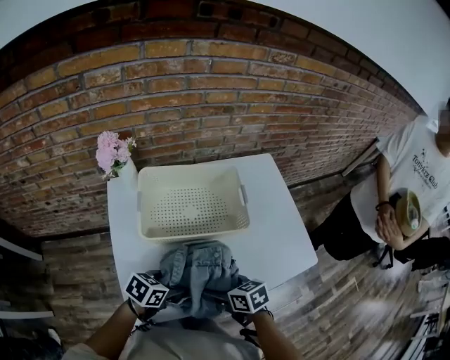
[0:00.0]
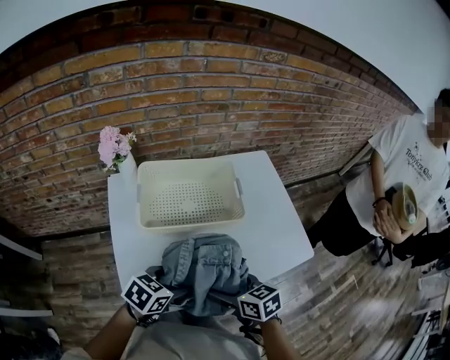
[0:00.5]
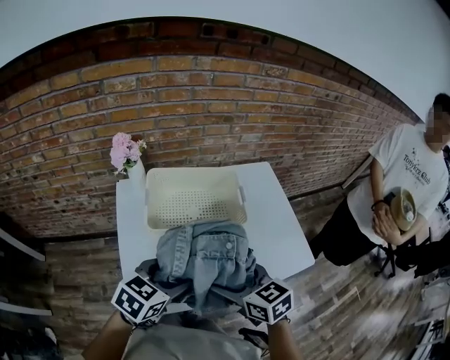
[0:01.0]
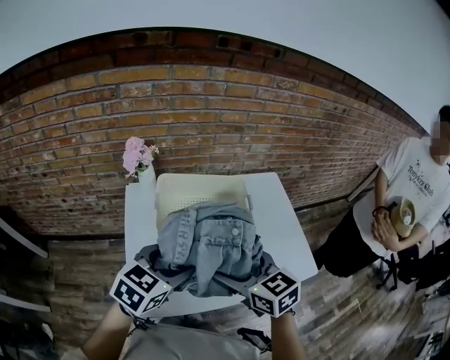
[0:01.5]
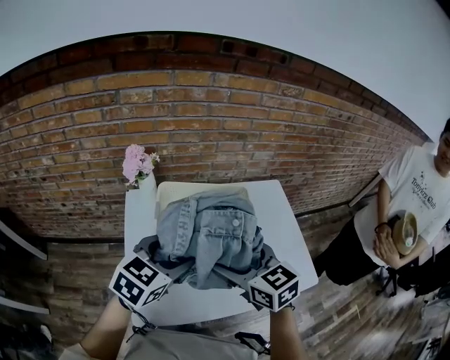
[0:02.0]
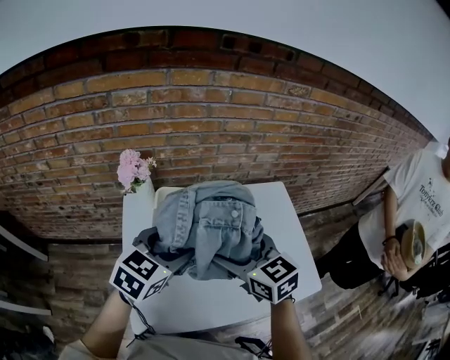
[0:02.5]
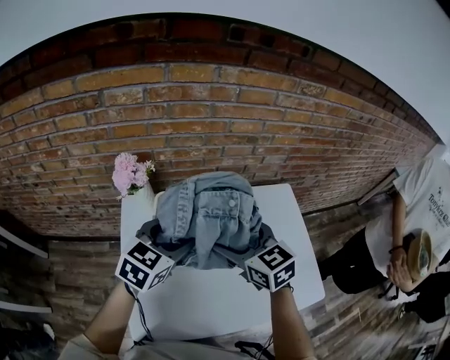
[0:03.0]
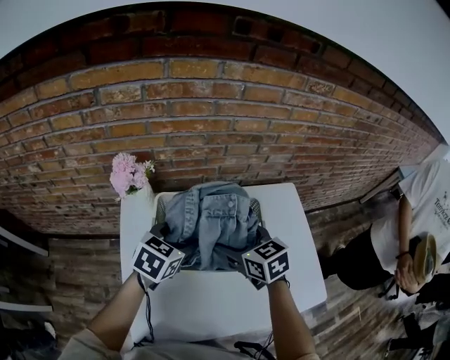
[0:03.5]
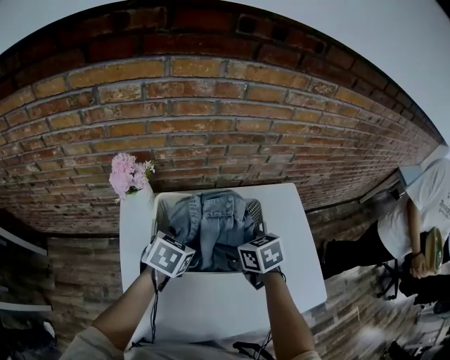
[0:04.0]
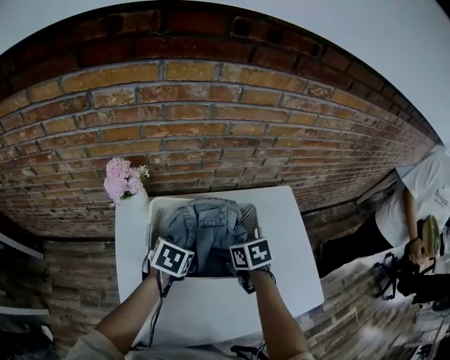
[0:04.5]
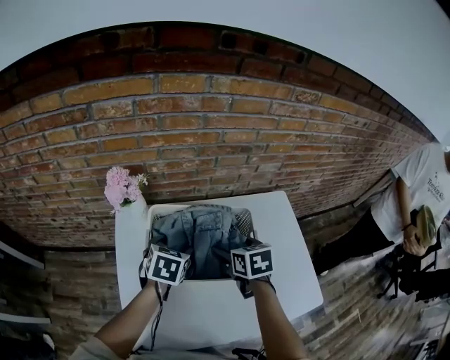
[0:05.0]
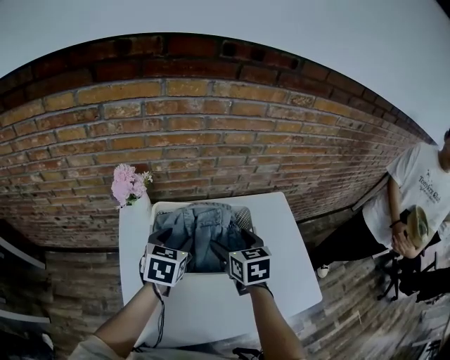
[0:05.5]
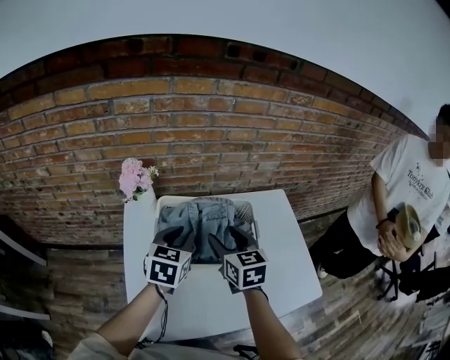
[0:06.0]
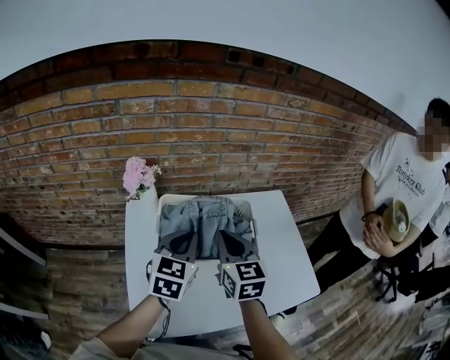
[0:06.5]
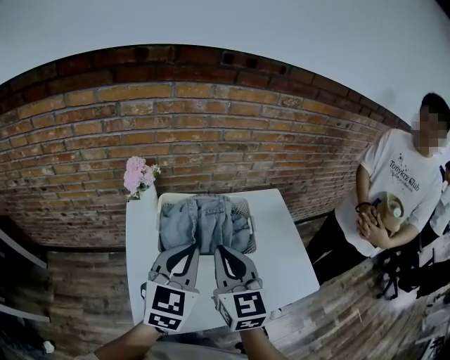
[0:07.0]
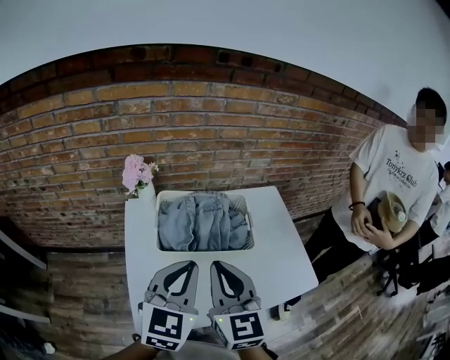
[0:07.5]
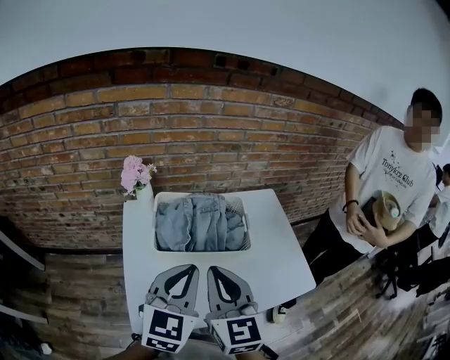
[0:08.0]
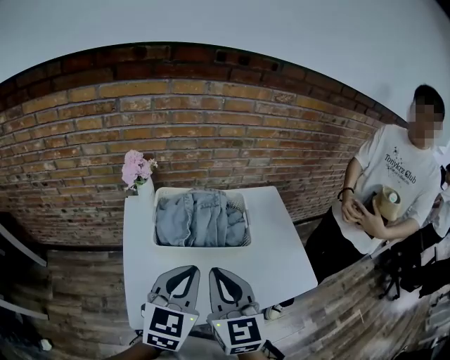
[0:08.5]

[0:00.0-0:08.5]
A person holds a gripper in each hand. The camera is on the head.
0:00.0 to 0:02.0: Both grippers travel together upward, some 25 cm. The right gripper turns by approximately 40 degrees. Meanwhile the left gripper changes its angle by some 40 degrees.
0:02.0 to 0:04.0: Both grippers move forward and downward, about 20 cm. The left gripper changes its angle by about 20 degrees. Meanwhile the right gripper turns by about 20 degrees.
0:04.0 to 0:06.5: Both grippers travel together upward and backward, approximately 15 cm. The left gripper turns by roughly 30 degrees, and closes its fingers. Meanwhile the right gripper rotates some 40 degrees, and closes.
0:06.5 to 0:08.5: The two grippers go roughly 15 cm backward.

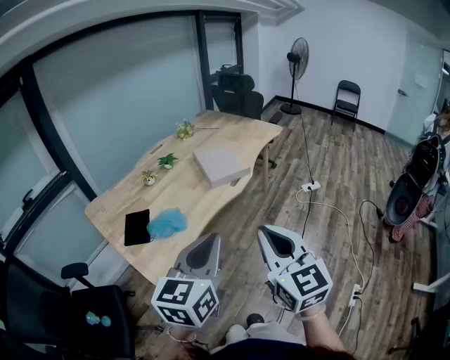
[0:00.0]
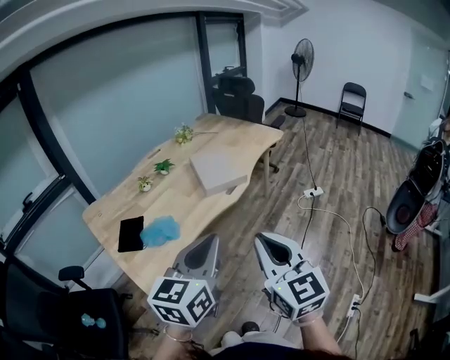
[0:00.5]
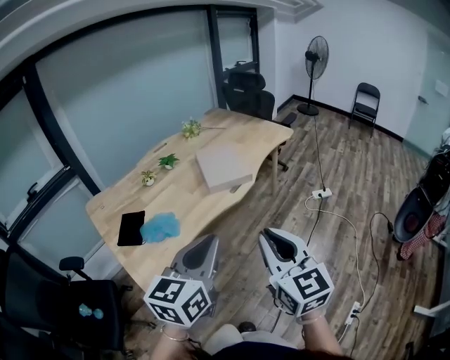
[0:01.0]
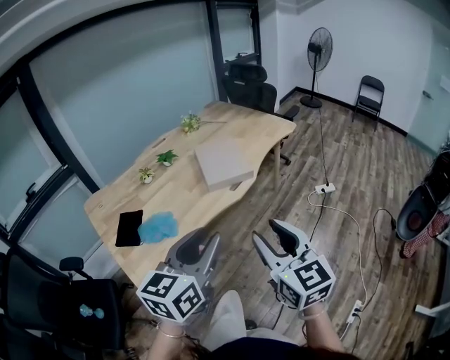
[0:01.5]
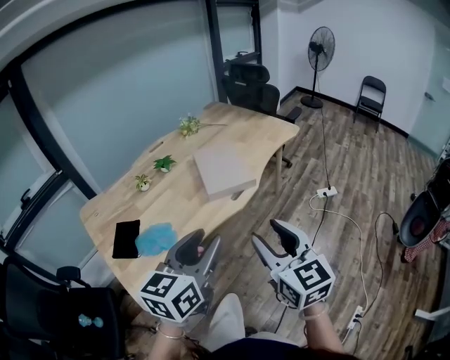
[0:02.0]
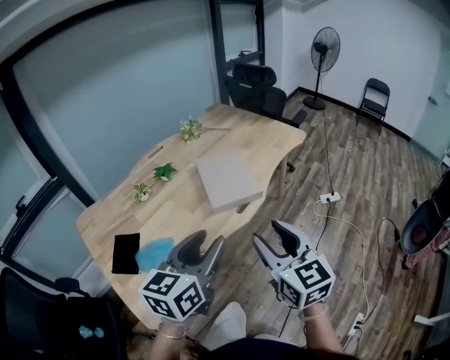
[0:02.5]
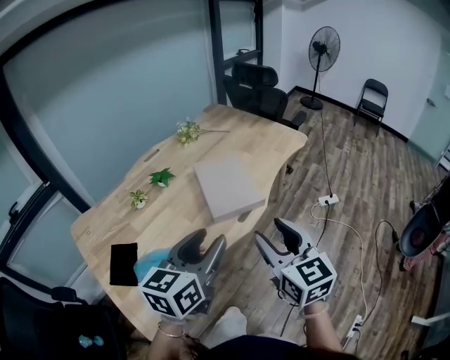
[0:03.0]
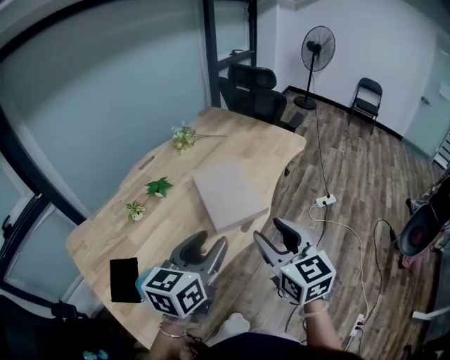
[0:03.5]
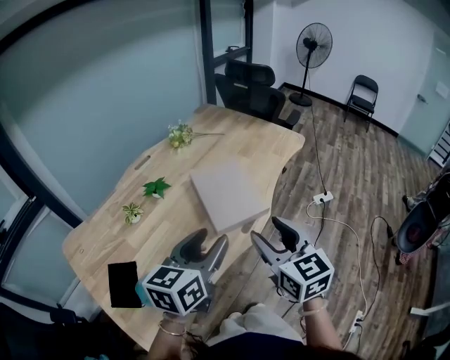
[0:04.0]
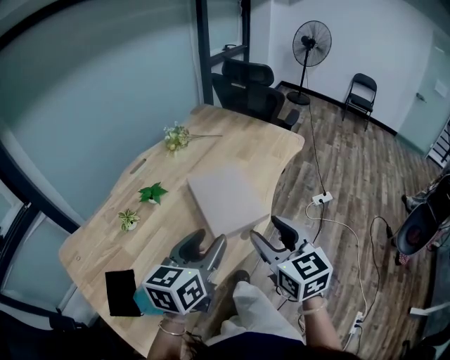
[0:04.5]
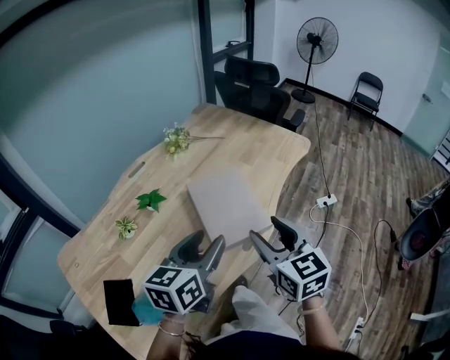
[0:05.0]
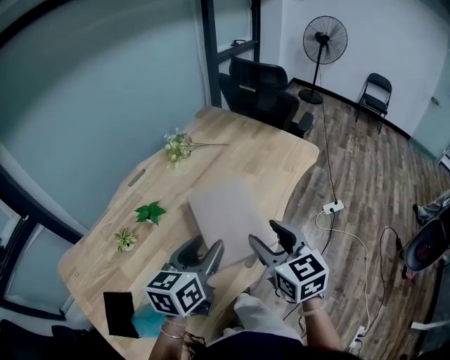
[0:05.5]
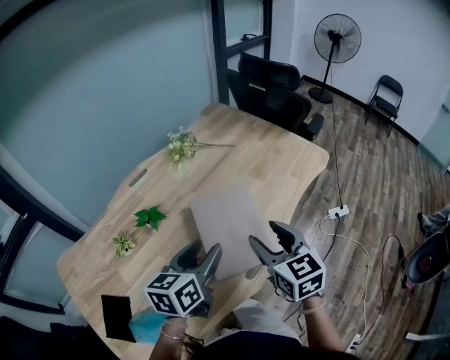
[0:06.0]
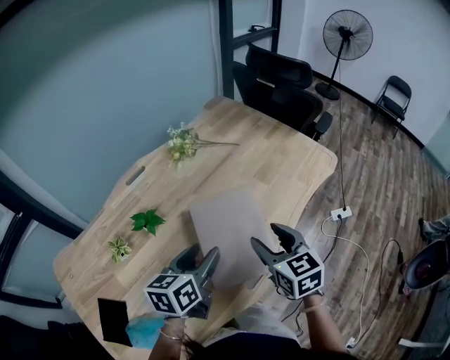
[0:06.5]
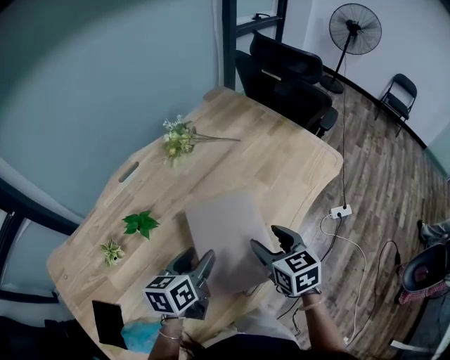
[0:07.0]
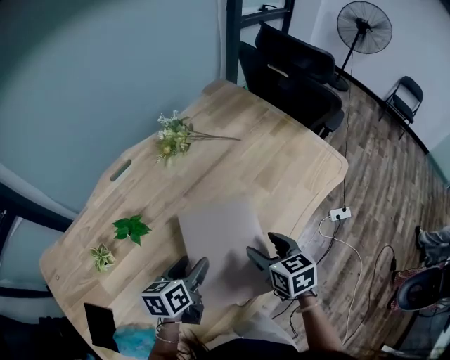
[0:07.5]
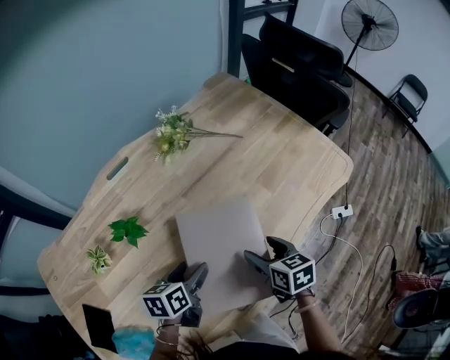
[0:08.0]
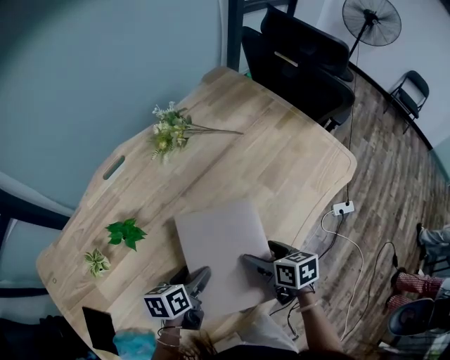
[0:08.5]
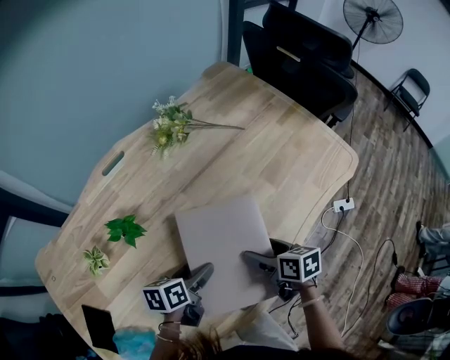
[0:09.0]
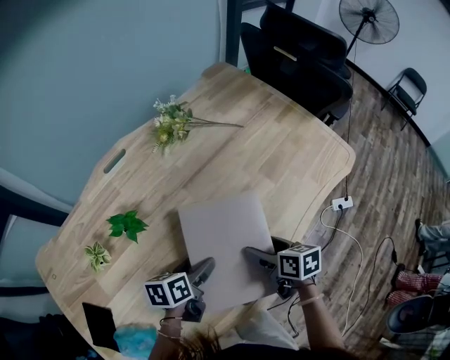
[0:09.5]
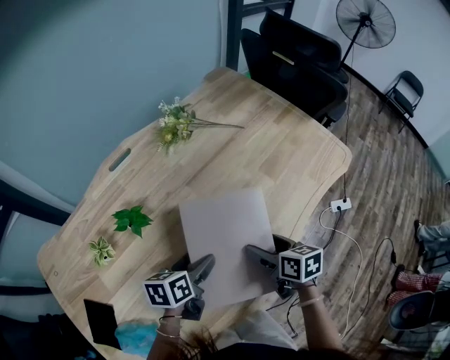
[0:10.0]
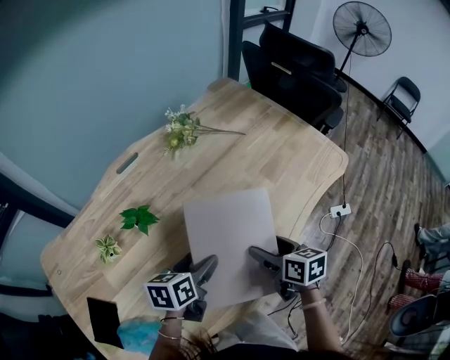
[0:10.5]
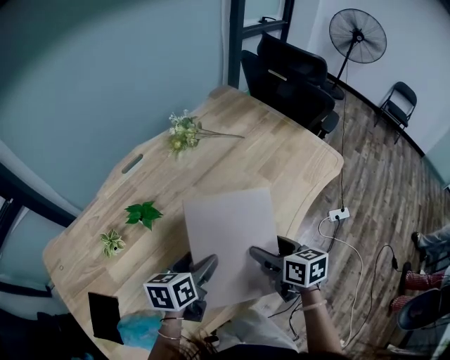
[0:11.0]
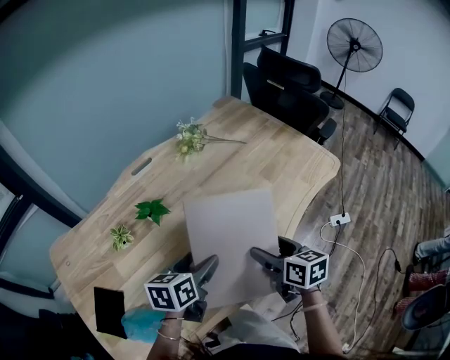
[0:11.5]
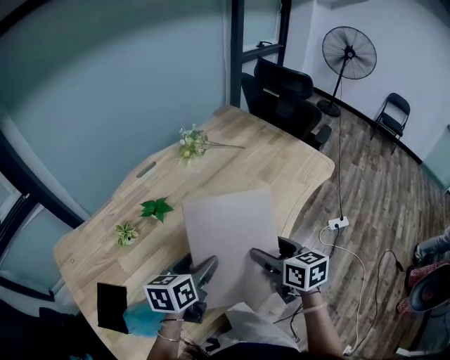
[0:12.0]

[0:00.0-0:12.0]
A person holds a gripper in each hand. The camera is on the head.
0:00.0 to 0:02.0: The right gripper is displaced forward and to the right by about 20 cm, and opens up; the left gripper heads forward, covering roughly 15 cm, and opens.
0:02.0 to 0:04.0: Both grippers travel together forward, approximately 20 cm.
0:04.0 to 0:06.0: The right gripper shifts about 20 cm forward. Meanwhile the left gripper goes some 20 cm forward and downward.
0:06.0 to 0:08.0: Both grippers travel together downward and forward, some 20 cm. The right gripper swivels some 30 degrees. Meanwhile the left gripper swivels some 30 degrees.
0:08.0 to 0:10.0: The grippers move only a little.
0:10.0 to 0:12.0: The grippers both shift upward and backward by some 15 cm.

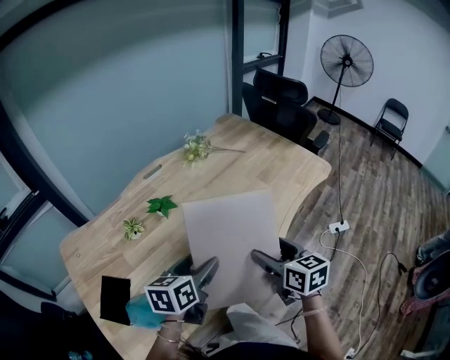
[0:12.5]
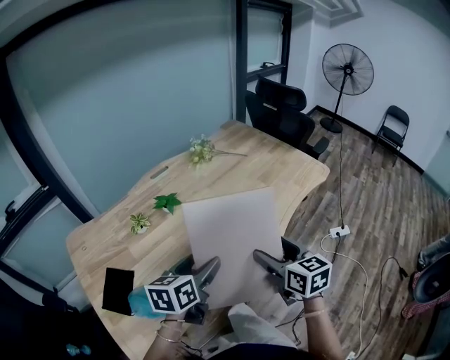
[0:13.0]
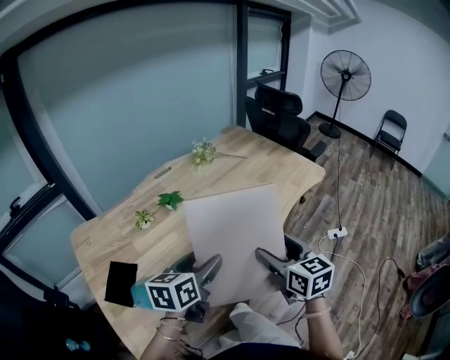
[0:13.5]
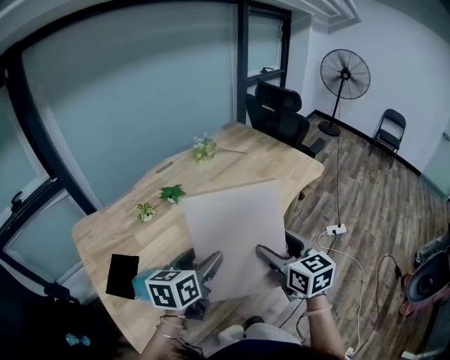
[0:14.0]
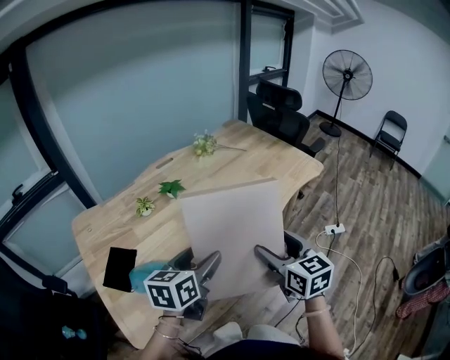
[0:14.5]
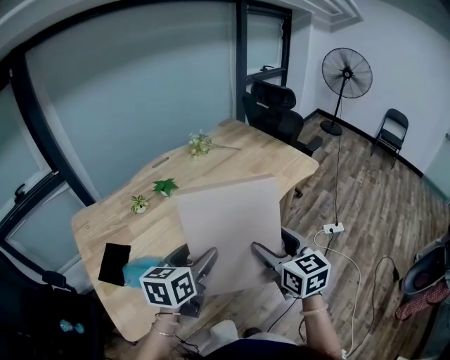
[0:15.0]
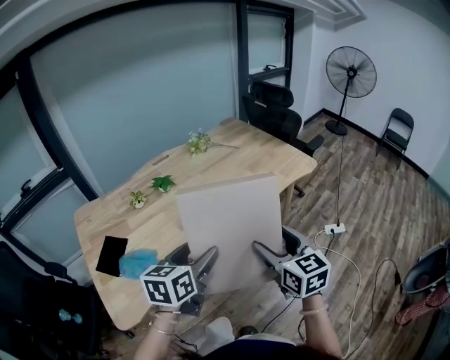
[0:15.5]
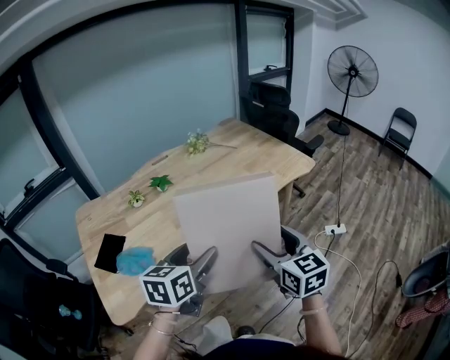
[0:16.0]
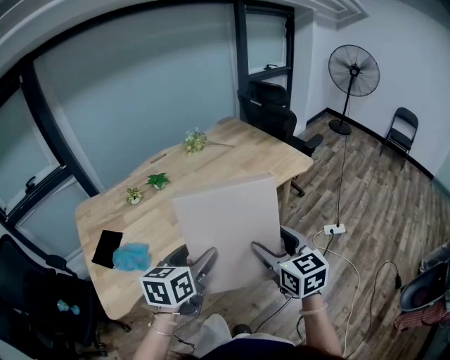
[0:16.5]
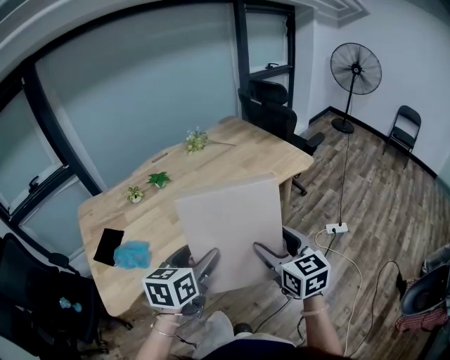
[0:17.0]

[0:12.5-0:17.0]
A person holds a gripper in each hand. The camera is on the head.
0:12.5 to 0:14.5: Both grippers travel together backward and upward, about 15 cm.
0:14.5 to 0:17.0: Both grippers move to the right and backward, some 15 cm.

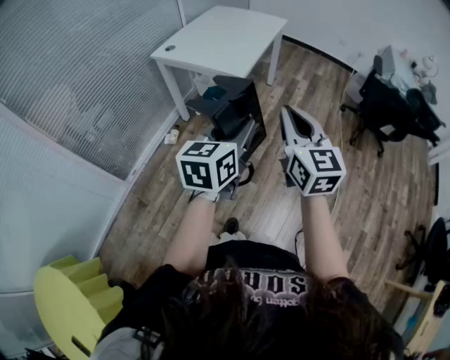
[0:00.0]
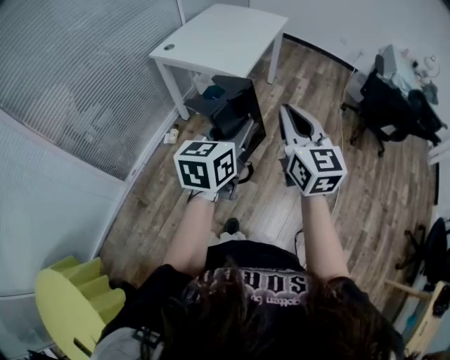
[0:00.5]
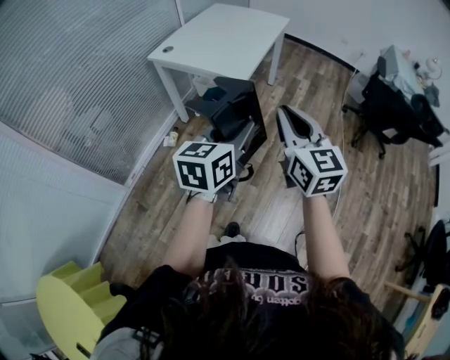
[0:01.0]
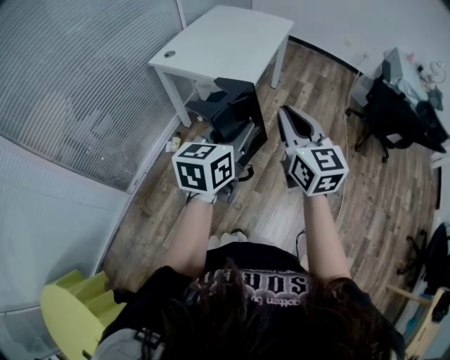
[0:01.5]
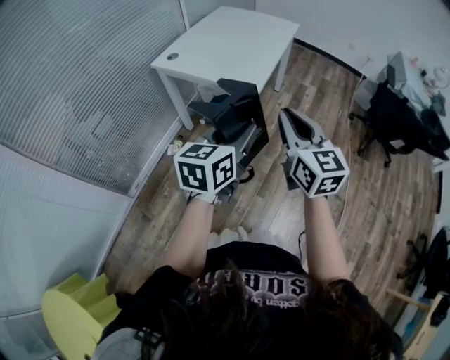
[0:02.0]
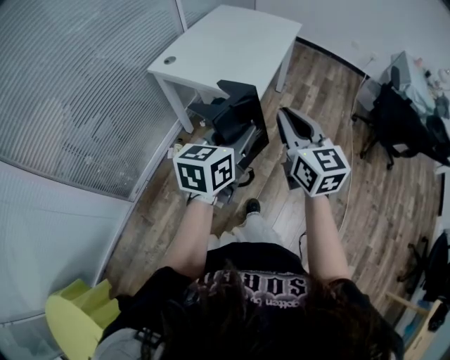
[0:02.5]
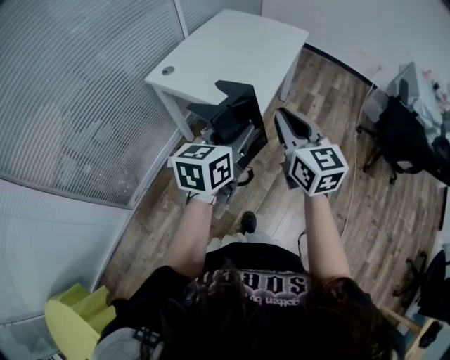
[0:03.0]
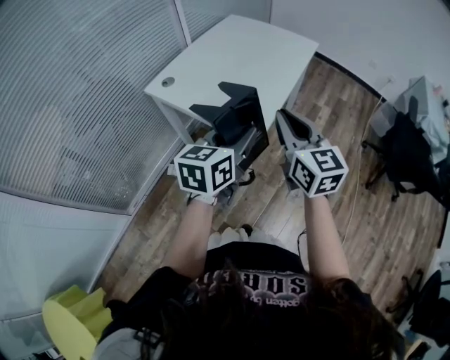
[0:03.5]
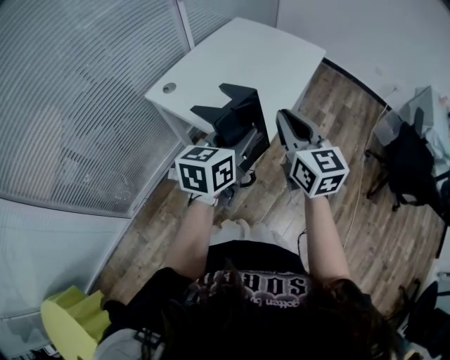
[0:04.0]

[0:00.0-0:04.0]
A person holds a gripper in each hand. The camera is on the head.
0:00.0 to 0:02.0: The two grippers go approximately 15 cm forward and to the left.
0:02.0 to 0:04.0: Both grippers travel together forward, roughly 30 cm.
